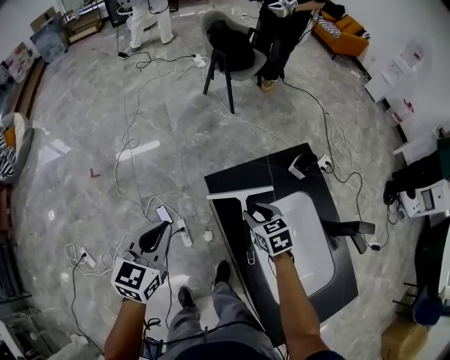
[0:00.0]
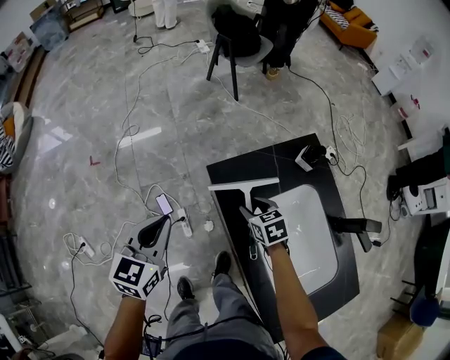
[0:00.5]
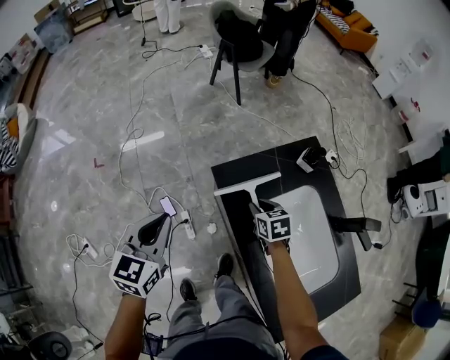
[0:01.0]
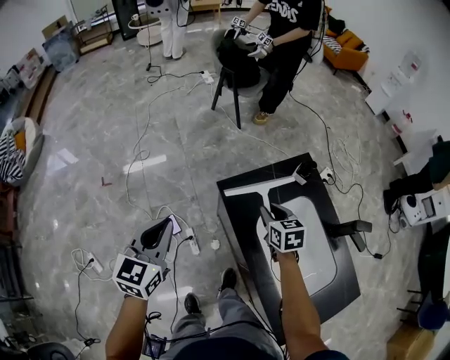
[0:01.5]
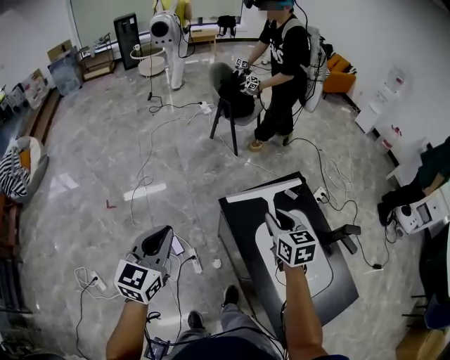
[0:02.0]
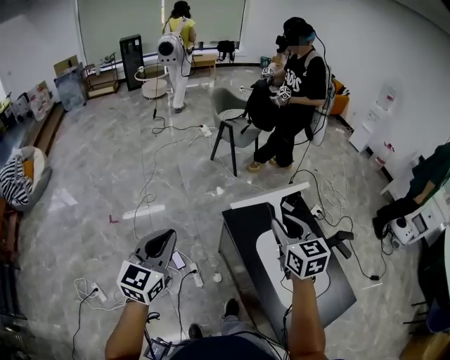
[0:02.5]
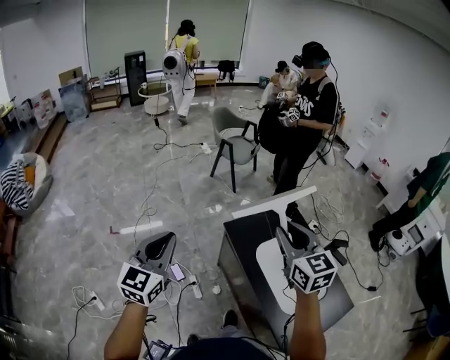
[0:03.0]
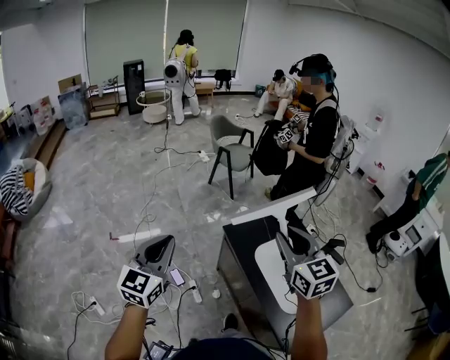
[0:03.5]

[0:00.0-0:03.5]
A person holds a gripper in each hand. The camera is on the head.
0:00.0 to 0:02.0: The two grippers go approximately 20 cm upward. The right gripper rotates approximately 20 degrees.
0:02.0 to 0:03.5: The right gripper is displaced upward and backward by roughly 30 cm, and swivels about 20 degrees; the left gripper shifts approximately 20 cm backward, upward and to the left.

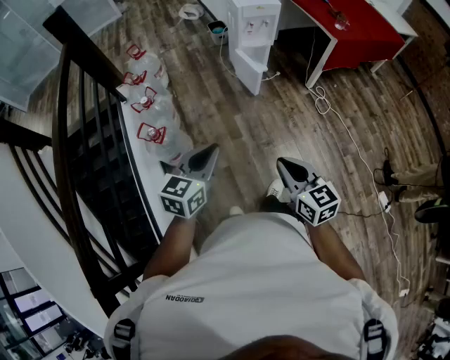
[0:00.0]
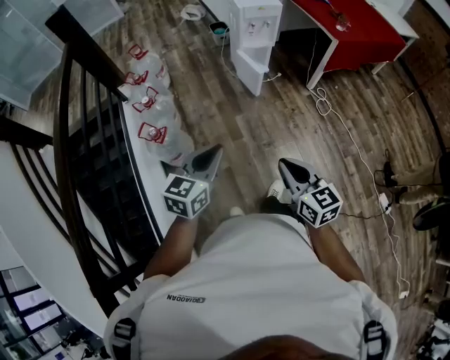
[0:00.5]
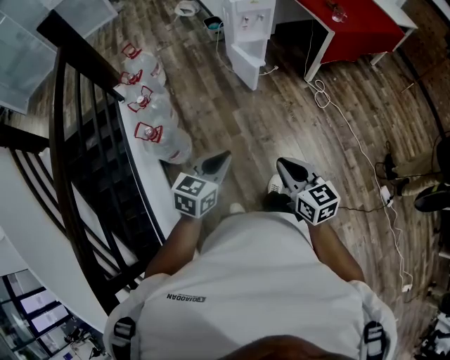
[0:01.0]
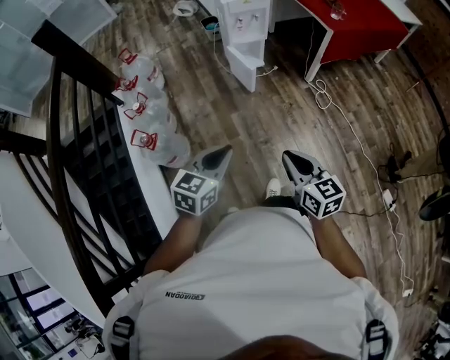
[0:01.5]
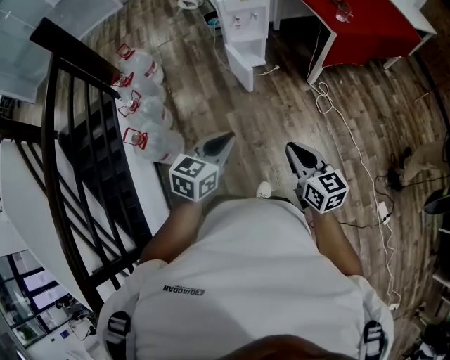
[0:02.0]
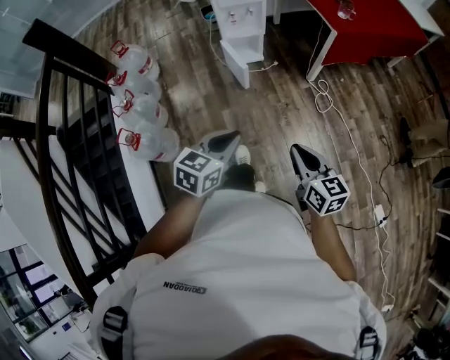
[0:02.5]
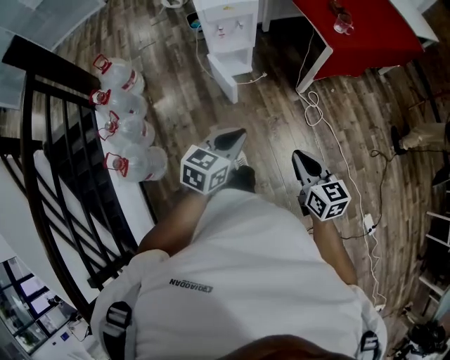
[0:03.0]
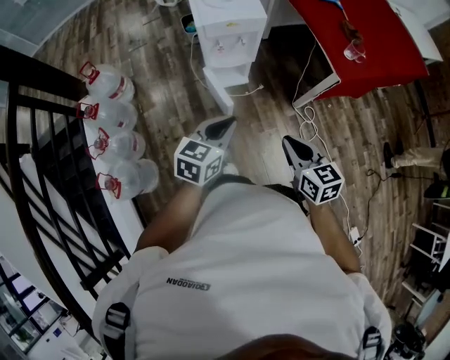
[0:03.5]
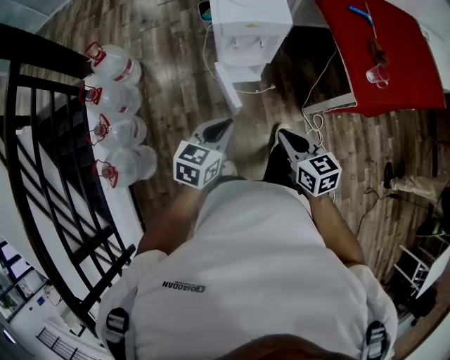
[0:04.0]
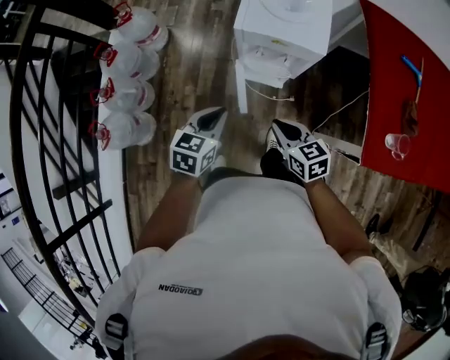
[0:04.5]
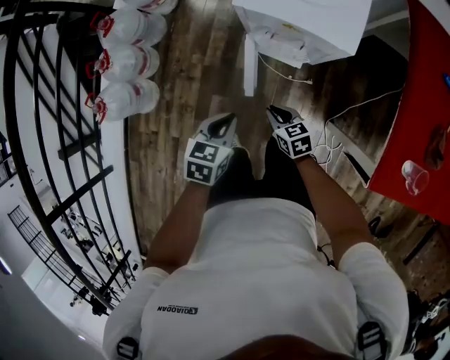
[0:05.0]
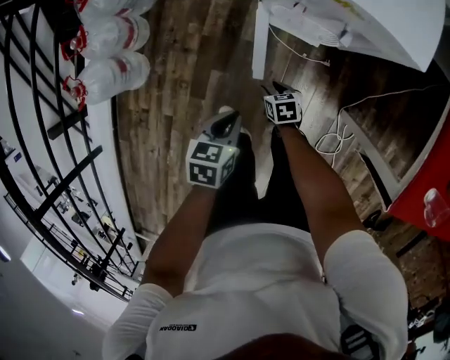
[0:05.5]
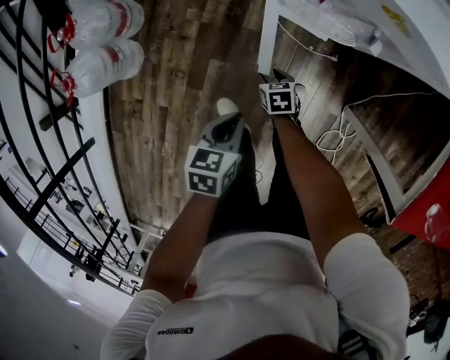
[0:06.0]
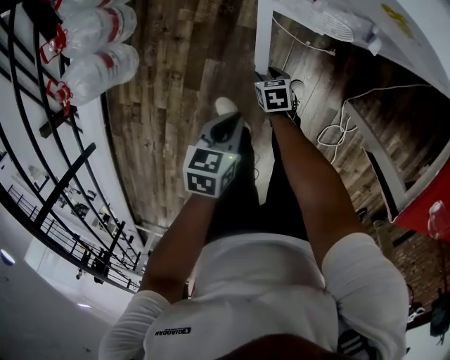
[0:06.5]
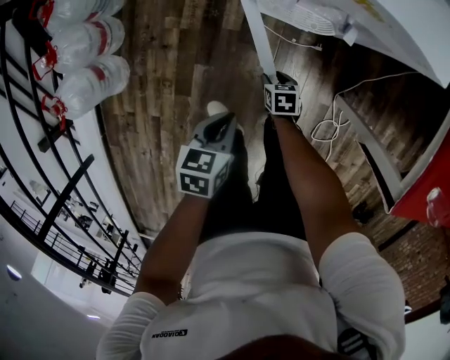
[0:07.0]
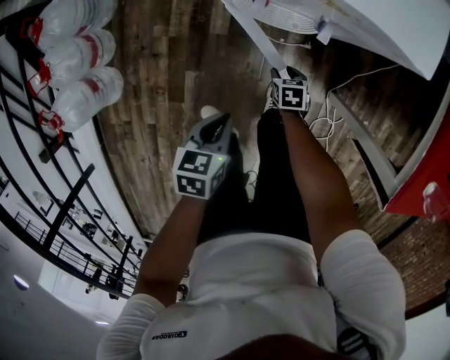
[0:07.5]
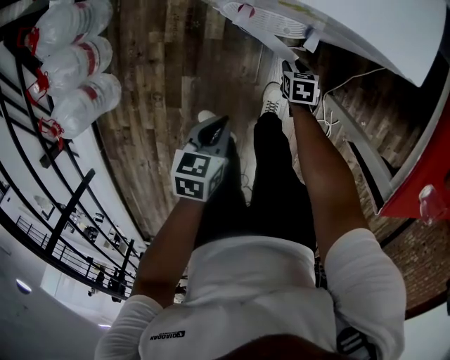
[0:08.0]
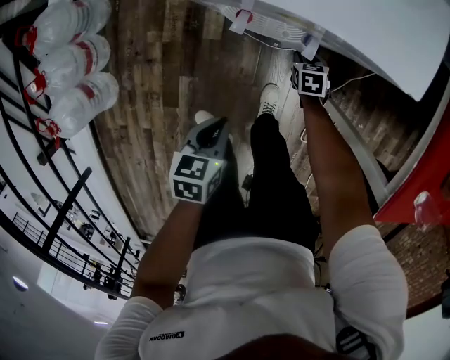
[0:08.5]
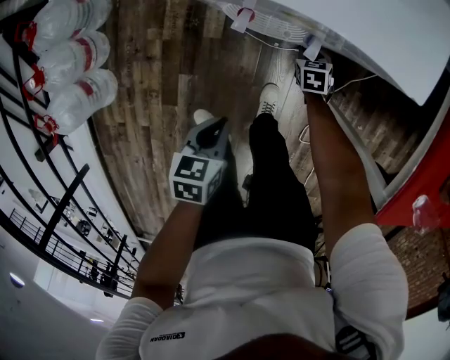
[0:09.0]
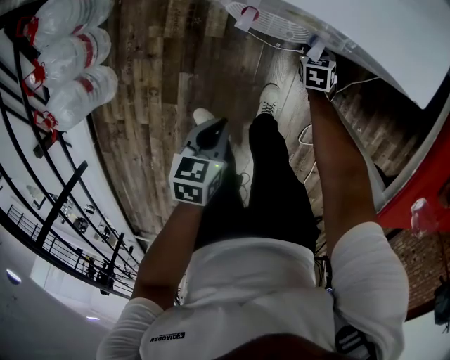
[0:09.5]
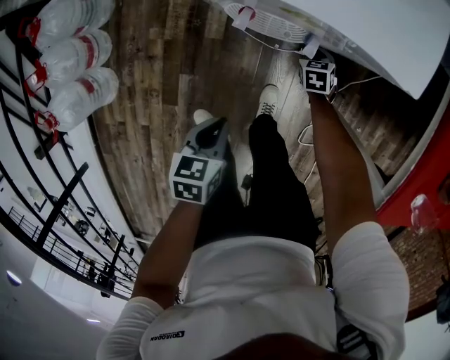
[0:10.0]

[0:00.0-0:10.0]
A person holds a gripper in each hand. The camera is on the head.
0:00.0 to 0:02.0: The two grippers go some 25 cm to the right and forward.
0:02.0 to 0:04.0: The pair of grippers is taken forward, approximately 50 cm.
0:04.0 to 0:06.0: The left gripper goes about 35 cm downward, and turns by some 50 degrees; the right gripper shifts about 50 cm downward, tilts its fingers some 30 degrees downward, and opens.
0:06.0 to 0:08.0: The left gripper ends up approximately 10 cm from where it was. The right gripper moves about 20 cm, and rotates some 20 degrees.
0:08.0 to 0:10.0: The right gripper goes approximately 10 cm forward, and closes up.

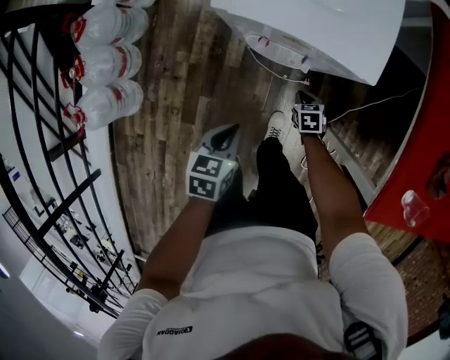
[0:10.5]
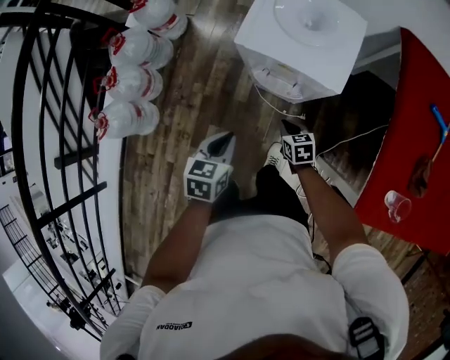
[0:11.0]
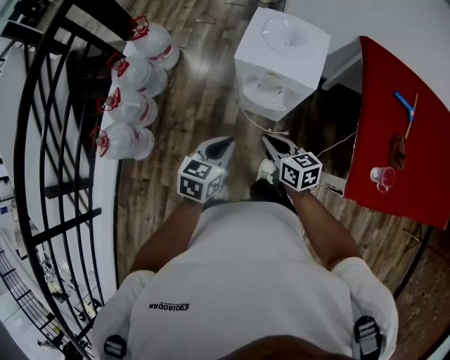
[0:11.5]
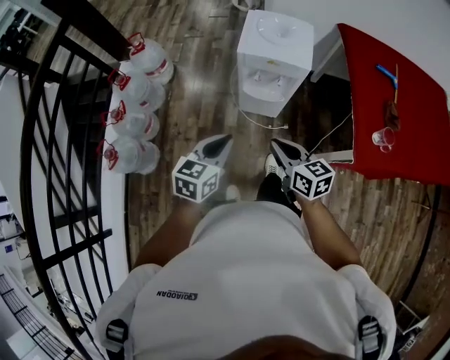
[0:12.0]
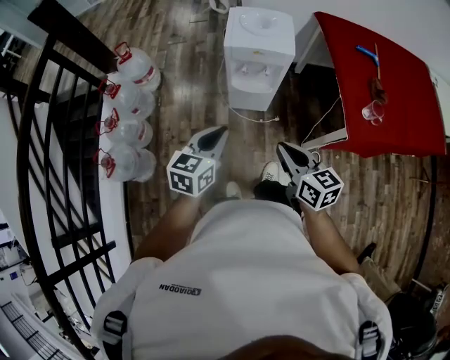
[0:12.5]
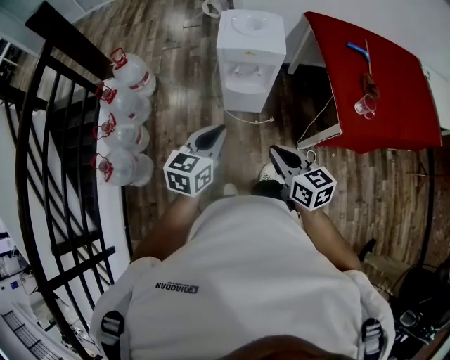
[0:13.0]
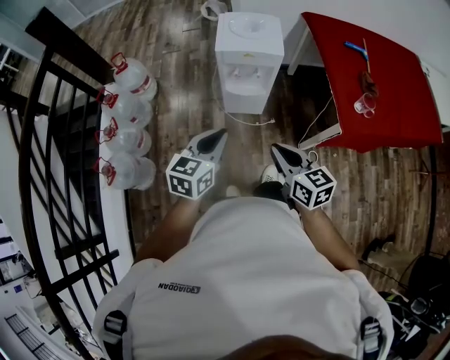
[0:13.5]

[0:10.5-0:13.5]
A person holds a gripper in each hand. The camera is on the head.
0:10.5 to 0:12.0: The right gripper shifts roughly 50 cm upward and backward, and tilts its fingers roughly 40 degrees upward; the left gripper heads upward, covering approximately 30 cm, and rotates approximately 30 degrees.
0:12.0 to 0:13.5: The left gripper moves some 5 cm. The right gripper goes roughly 10 cm backward.

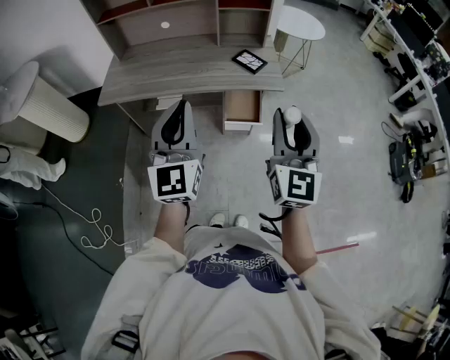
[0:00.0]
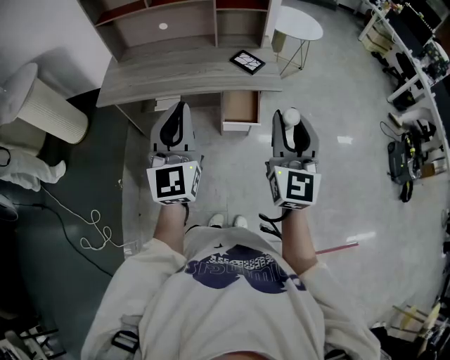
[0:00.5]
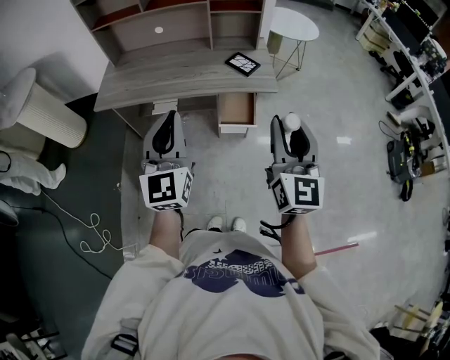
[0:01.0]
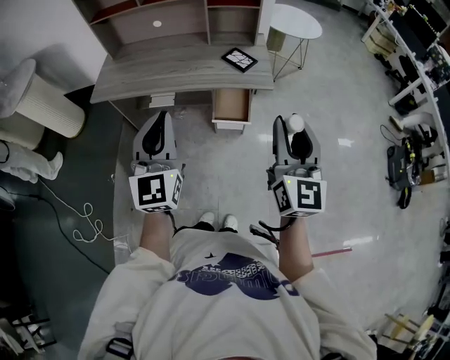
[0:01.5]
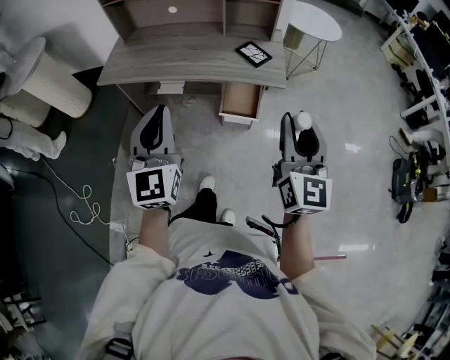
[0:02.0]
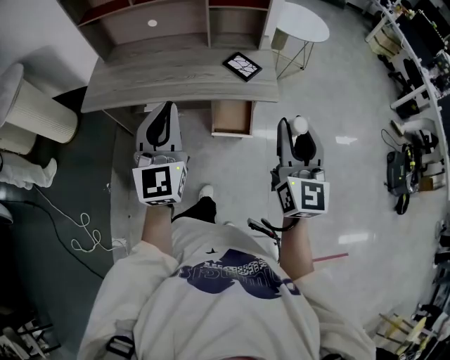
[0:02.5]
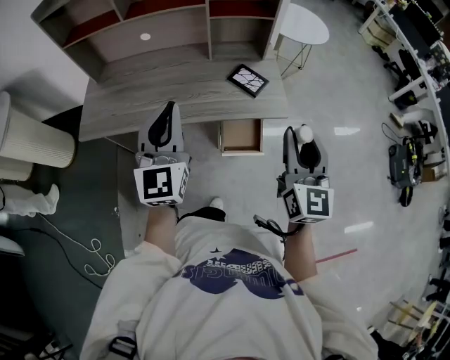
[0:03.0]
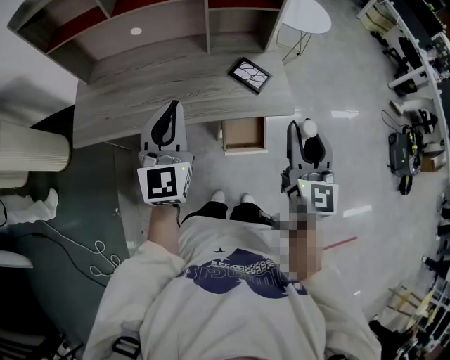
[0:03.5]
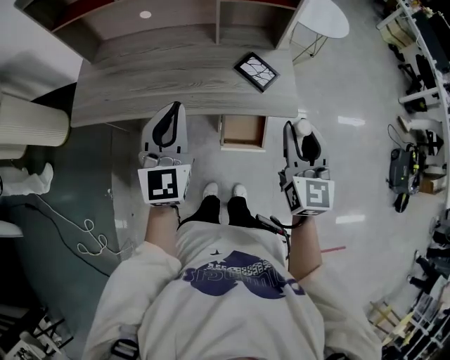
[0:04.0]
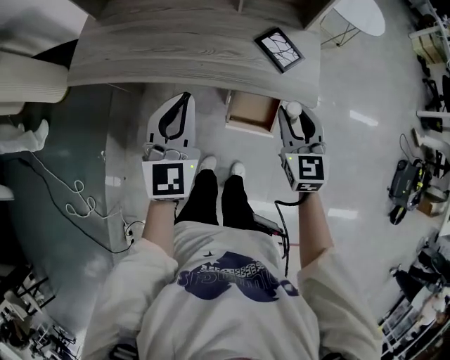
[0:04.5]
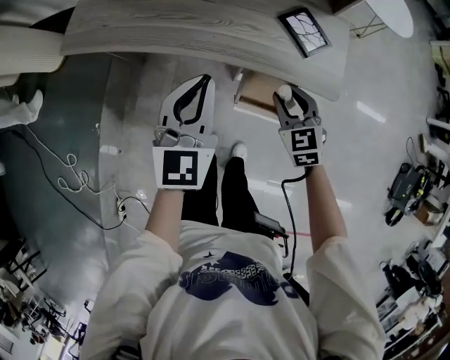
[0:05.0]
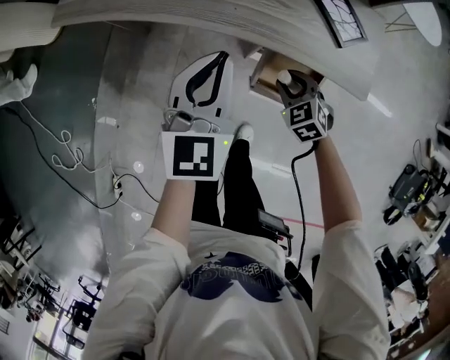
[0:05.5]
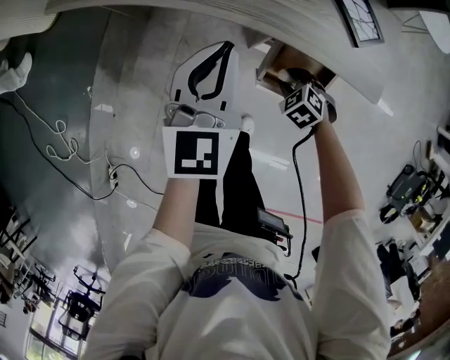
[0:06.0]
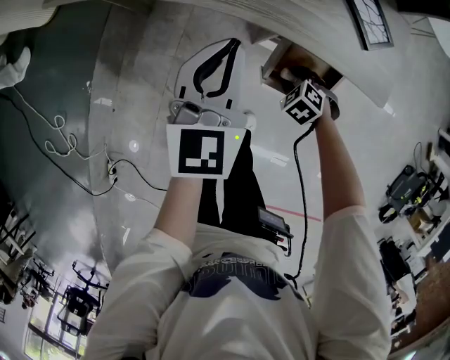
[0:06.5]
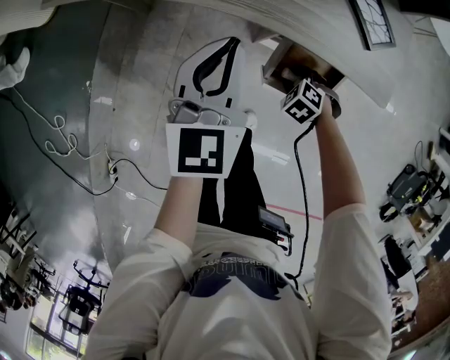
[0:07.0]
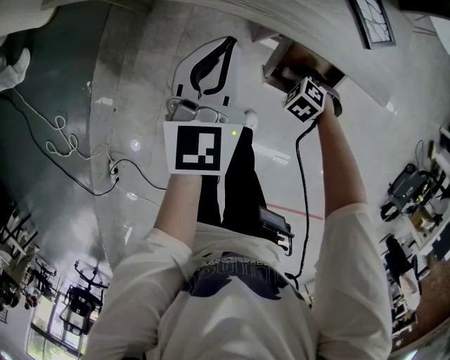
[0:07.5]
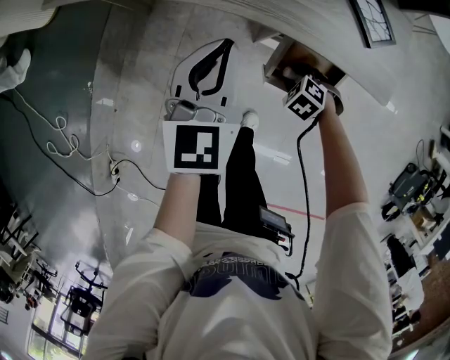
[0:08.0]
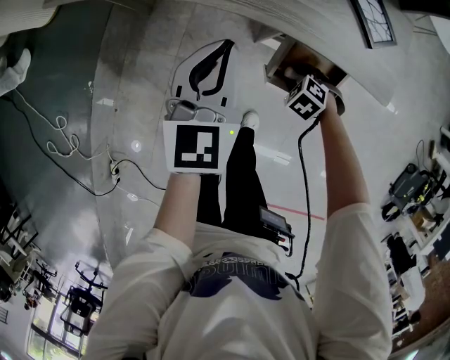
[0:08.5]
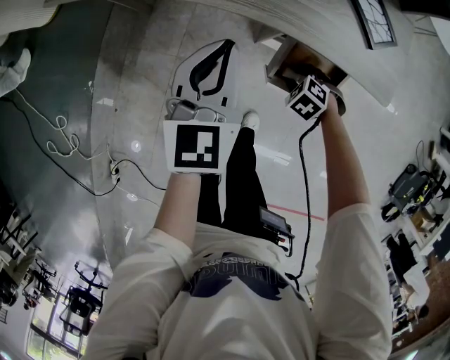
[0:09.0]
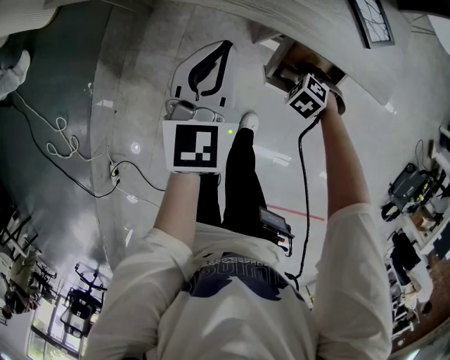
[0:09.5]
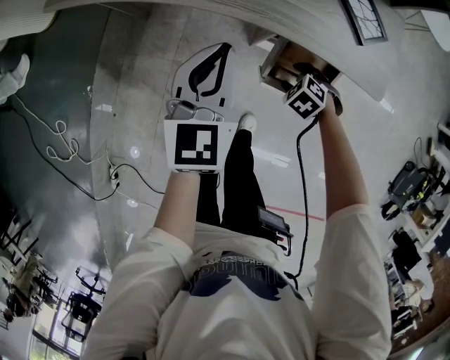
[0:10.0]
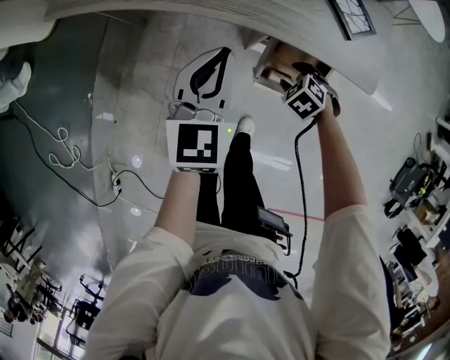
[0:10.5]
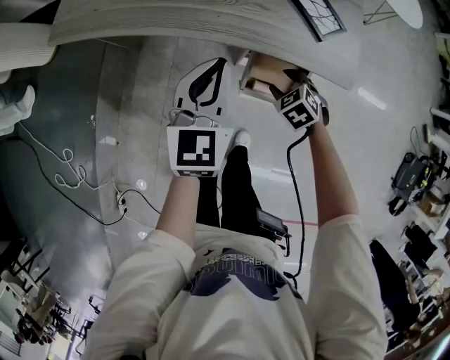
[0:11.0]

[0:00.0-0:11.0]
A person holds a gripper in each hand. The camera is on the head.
0:00.0 to 0:02.0: The right gripper shifts roughly 10 cm to the right.
0:02.0 to 0:03.5: Both grippers travel together forward, roughly 25 cm.
0:03.5 to 0:05.5: The left gripper shifts roughly 20 cm downward, and turns by some 20 degrees. The right gripper heads downward, covering about 40 cm, and tips its fingers downward by roughly 50 degrees.
0:05.5 to 0:07.5: The left gripper heads downward, covering roughly 5 cm; the right gripper heads downward, covering roughly 10 cm, and turns by roughly 30 degrees.
0:07.5 to 0:09.0: Neither gripper changes place.
0:09.0 to 0:11.0: The left gripper changes place by roughly 5 cm. The right gripper is displaced upward by about 10 cm, and rotates roughly 20 degrees.
